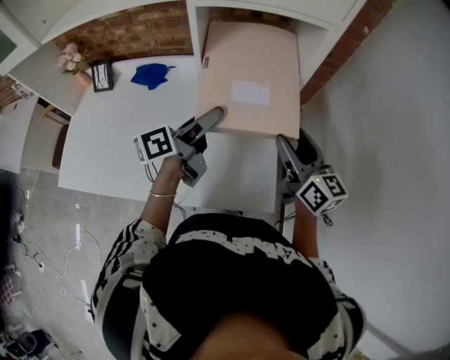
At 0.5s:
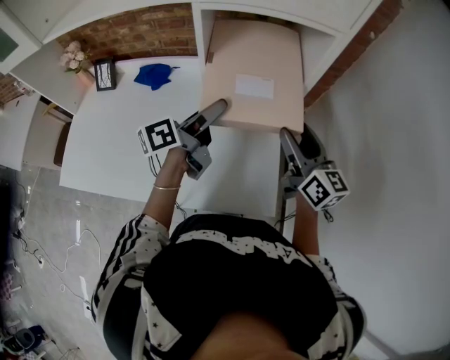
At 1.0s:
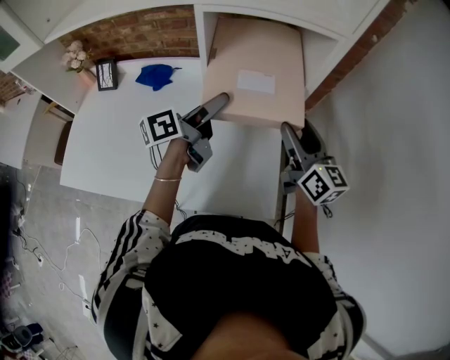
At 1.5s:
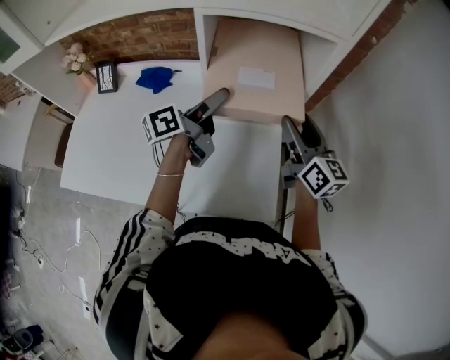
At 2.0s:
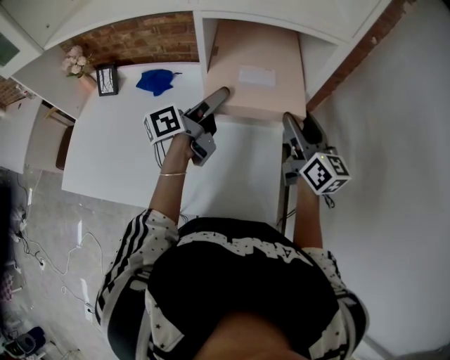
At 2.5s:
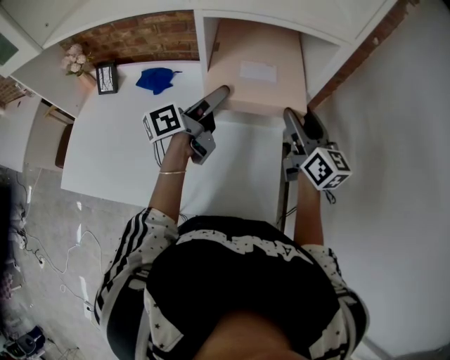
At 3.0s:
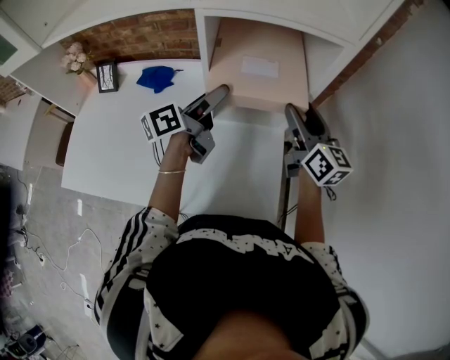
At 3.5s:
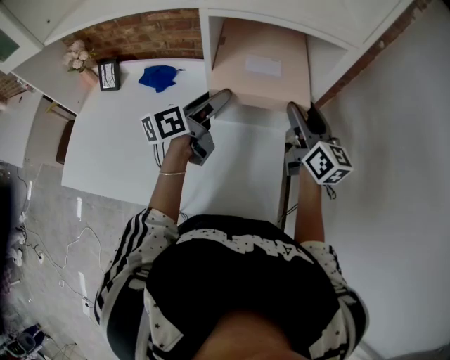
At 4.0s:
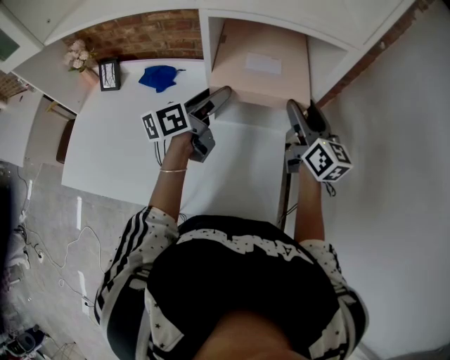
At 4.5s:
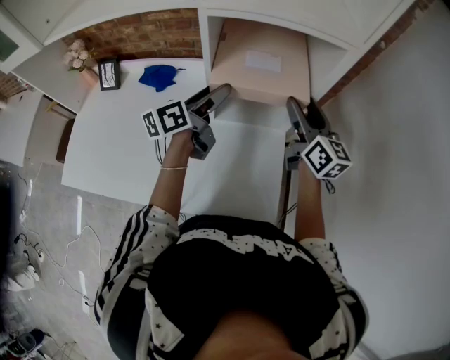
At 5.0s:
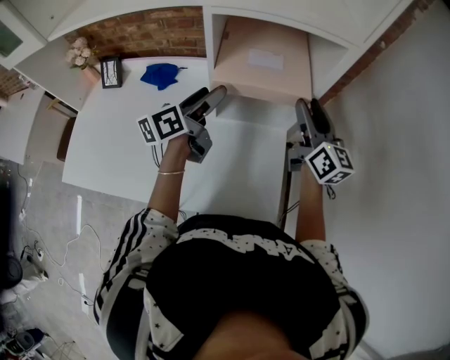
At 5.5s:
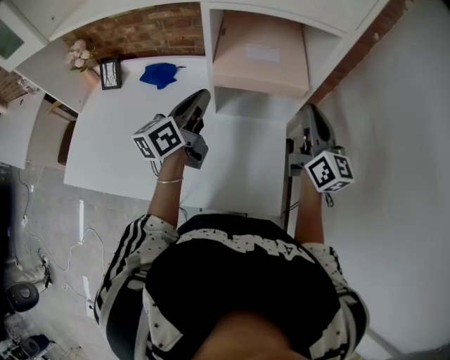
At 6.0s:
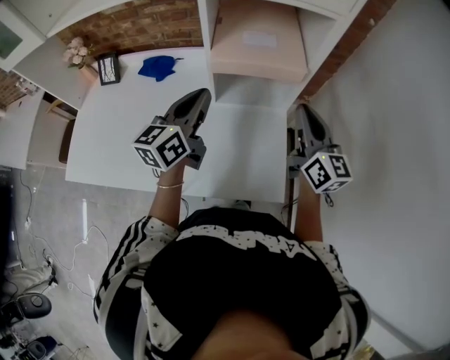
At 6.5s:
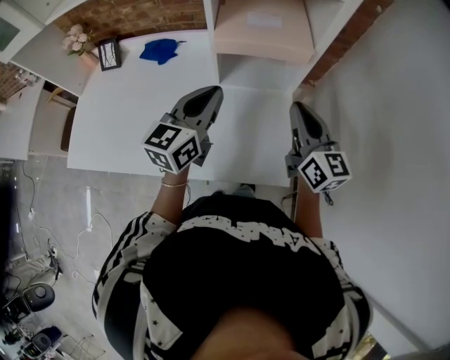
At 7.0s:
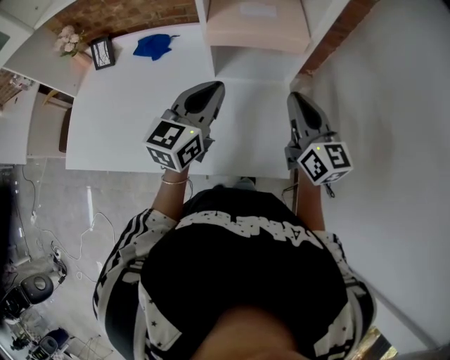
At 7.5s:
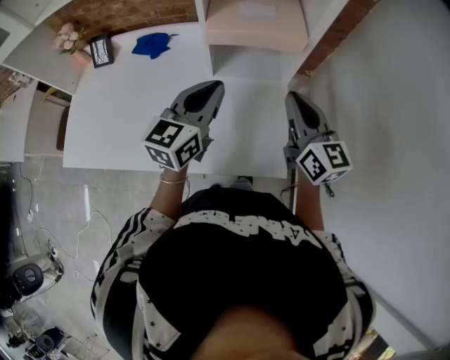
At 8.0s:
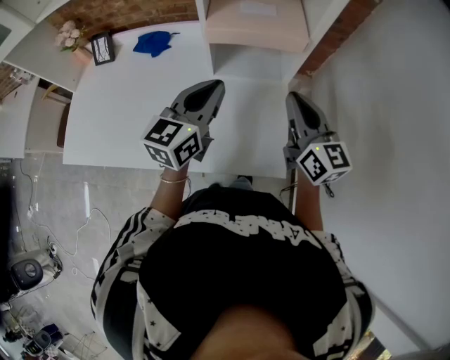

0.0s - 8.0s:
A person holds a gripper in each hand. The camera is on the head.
0.0s - 2.0s: Both grippers move forward, roughly 10 cm.
2.0s - 4.0s: The grippers move only a little.
4.0s - 6.0s: Both grippers move backward, roughly 10 cm. The right gripper closes its fingers; the left gripper changes its angle by roughly 30 degrees, and closes.
6.0s - 8.0s: The left gripper shifts approximately 5 cm to the right; the right gripper moves roughly 5 cm.

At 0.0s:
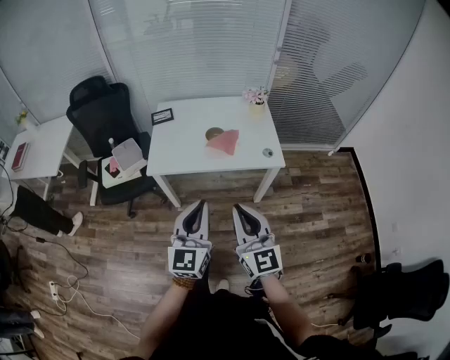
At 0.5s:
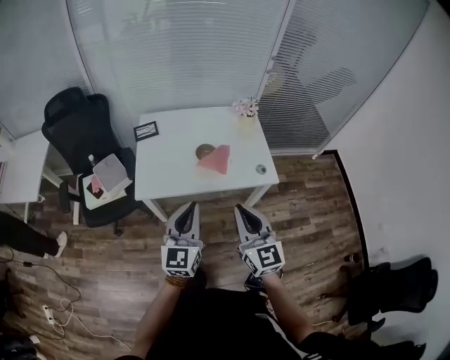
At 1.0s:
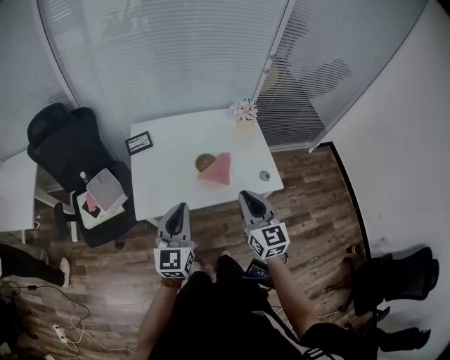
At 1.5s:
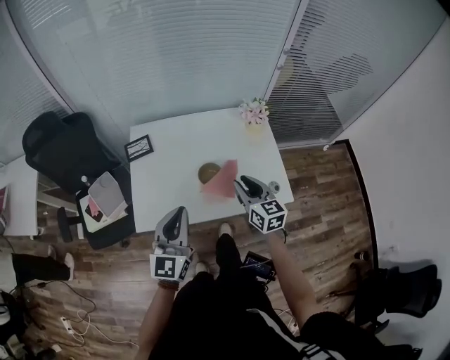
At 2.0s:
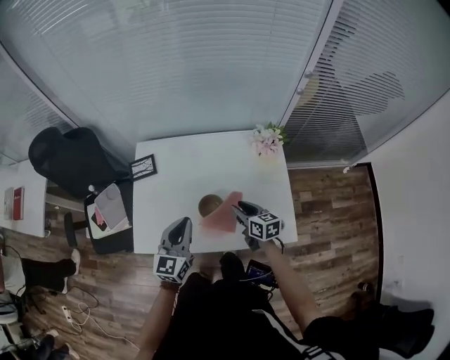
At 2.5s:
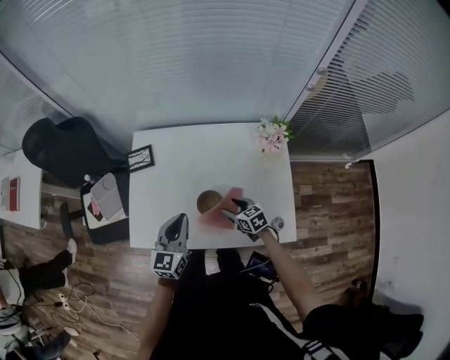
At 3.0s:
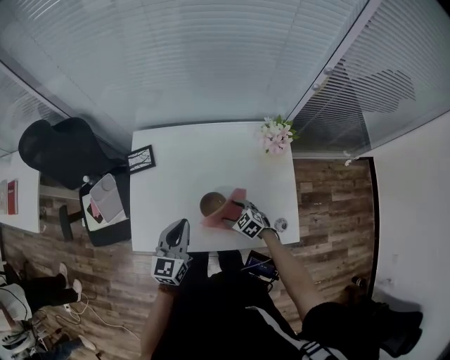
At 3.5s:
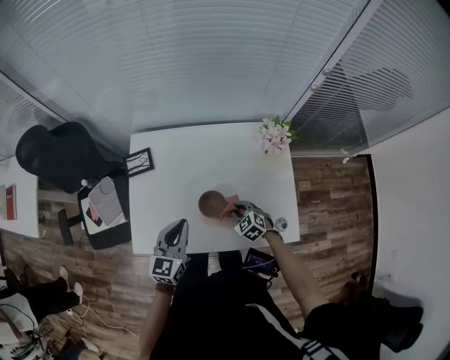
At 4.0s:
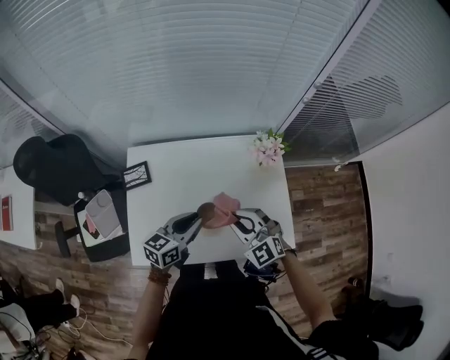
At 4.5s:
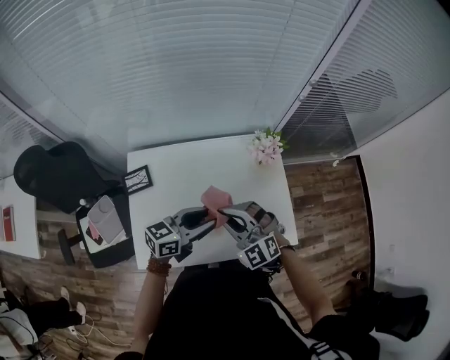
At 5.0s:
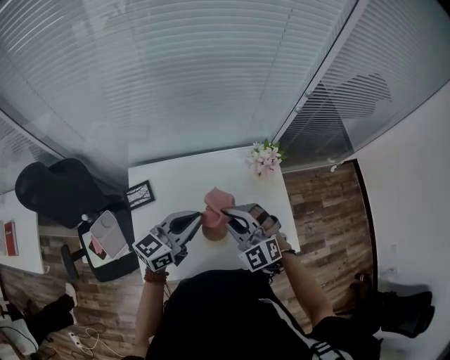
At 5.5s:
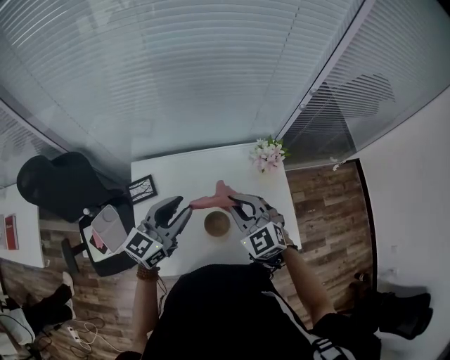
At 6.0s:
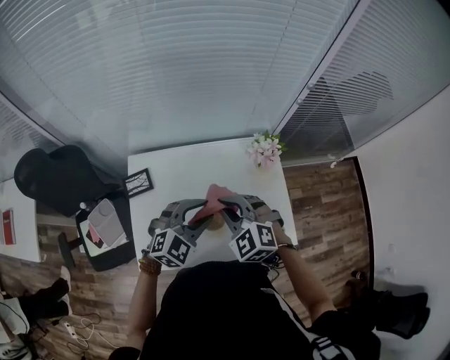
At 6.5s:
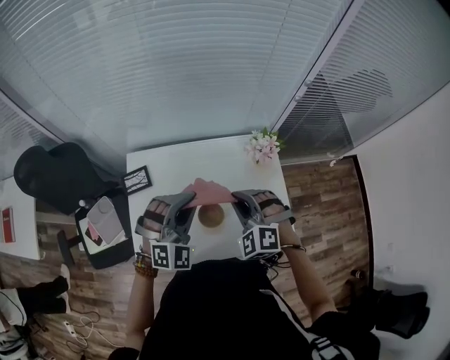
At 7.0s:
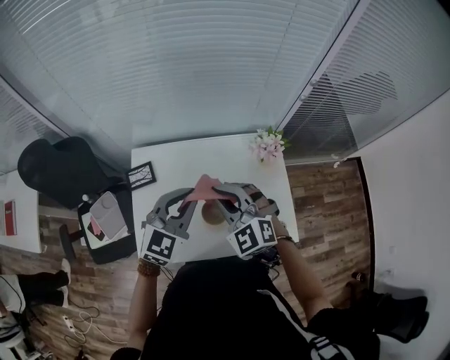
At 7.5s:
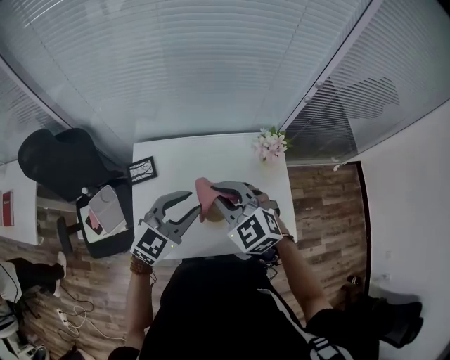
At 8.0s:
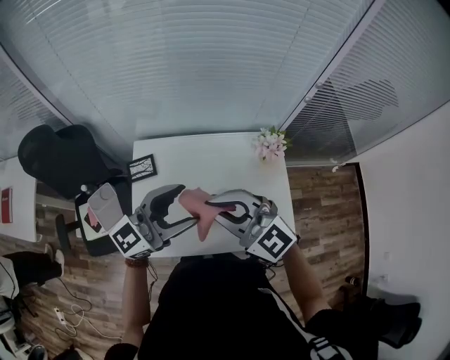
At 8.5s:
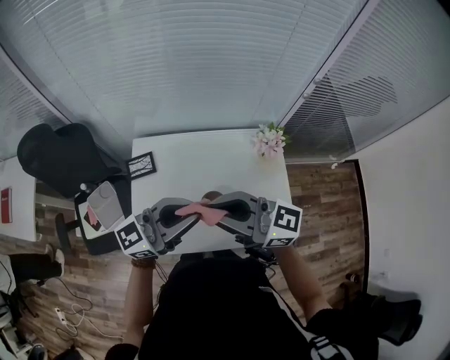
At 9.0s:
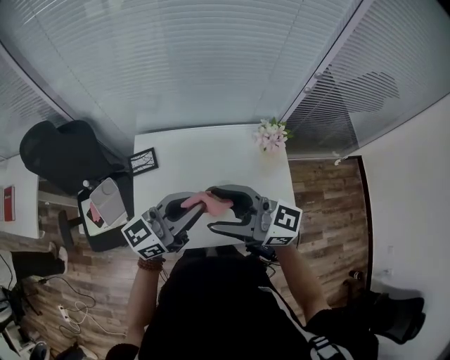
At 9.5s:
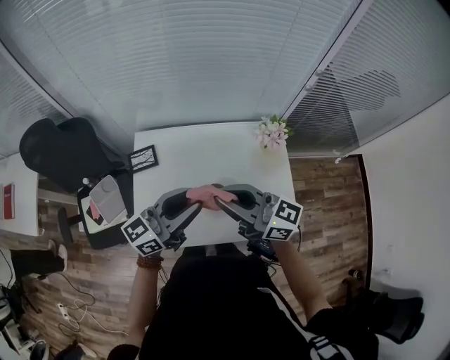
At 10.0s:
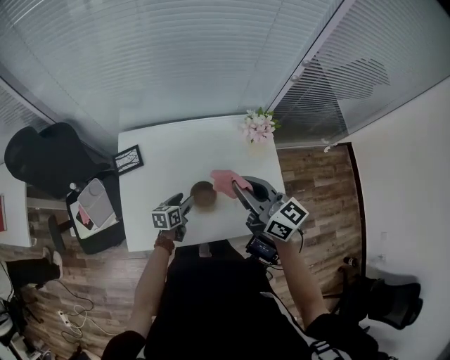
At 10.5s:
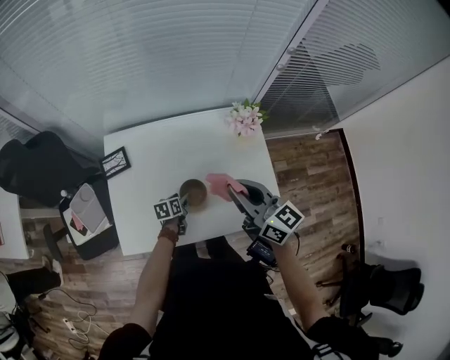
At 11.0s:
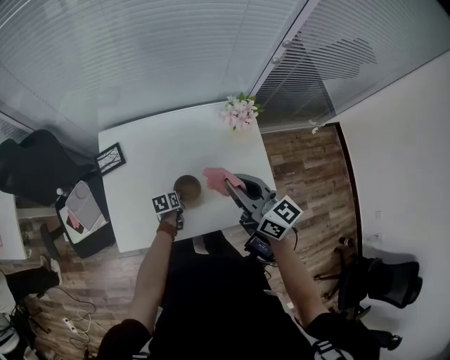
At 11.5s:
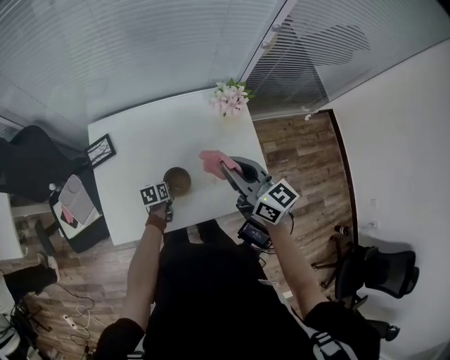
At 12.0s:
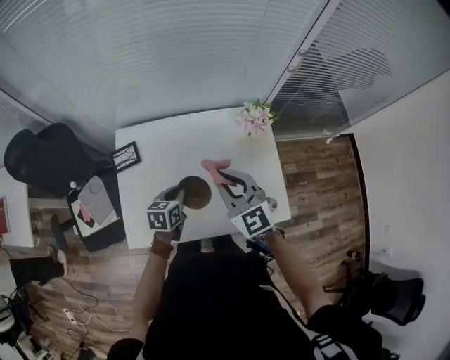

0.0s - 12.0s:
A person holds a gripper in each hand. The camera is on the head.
0.0s - 2.0s: The pair of grippers is taken forward, approximately 50 cm. The right gripper goes about 30 cm downward, tips its fingers downward by about 30 degrees, and opens up.
2.0s - 4.0s: The left gripper shifts about 5 cm forward, and changes its angle by some 40 degrees; the right gripper shifts roughly 15 cm upward and to the left, twists some 60 degrees counterclockwise, seen from behind, and closes its fingers.
4.0s - 6.0s: The left gripper heads upward, covering about 10 cm, twists approximately 60 degrees clockwise, seen from behind, and opens, while the right gripper travels upward and to the left by about 10 cm.
6.0s - 8.0s: The left gripper shifts roughly 15 cm upward and to the left, tips its fingers upward by about 40 degrees, and closes and opens again. Meanwhile the right gripper heads upward and backward, covering about 15 cm, and swivels about 40 degrees.
8.0s - 10.0s: The right gripper shifts by some 15 cm, twists some 40 degrees clockwise, seen from behind, and opens, then closes once more; the left gripper moves downward, some 40 cm, points its fingers approximately 50 degrees further downward, and closes, then opens again.
10.0s - 12.0s: The right gripper rotates roughly 40 degrees, while the left gripper travels upward by roughly 10 cm, and closes up.

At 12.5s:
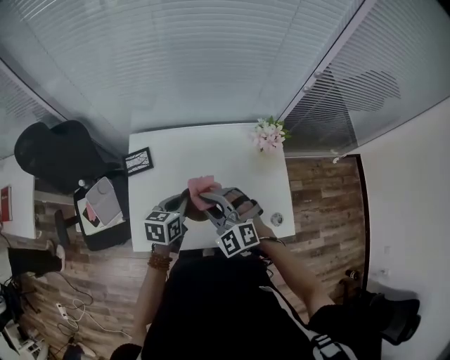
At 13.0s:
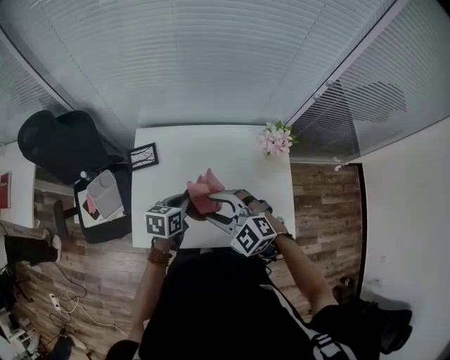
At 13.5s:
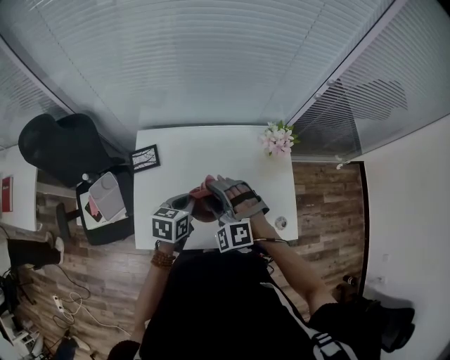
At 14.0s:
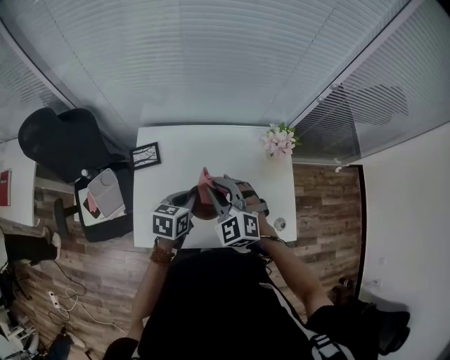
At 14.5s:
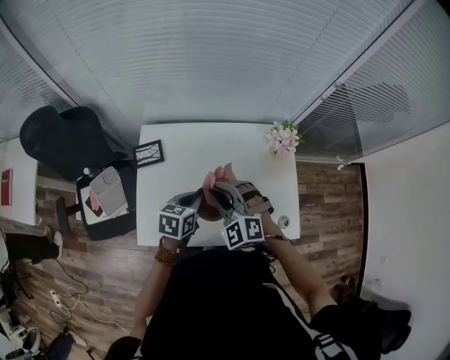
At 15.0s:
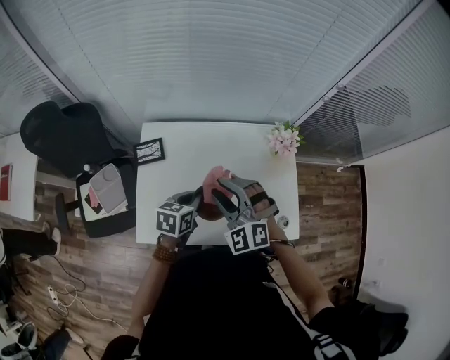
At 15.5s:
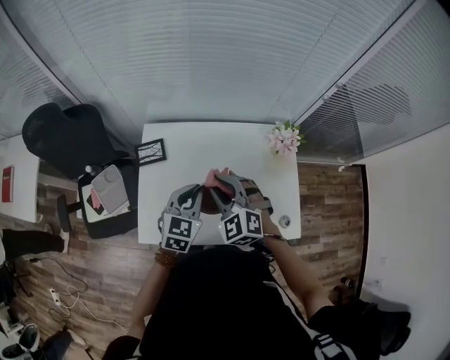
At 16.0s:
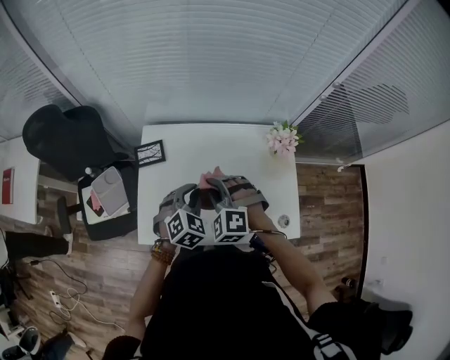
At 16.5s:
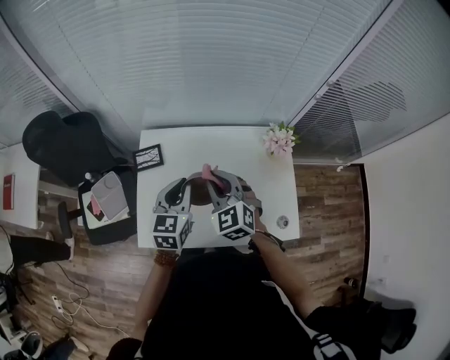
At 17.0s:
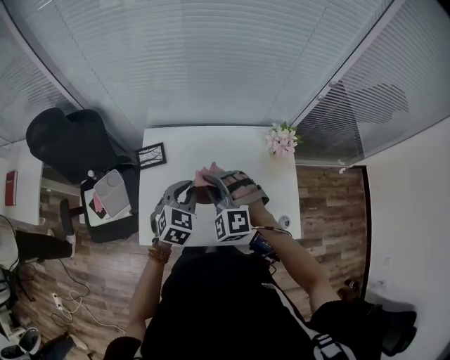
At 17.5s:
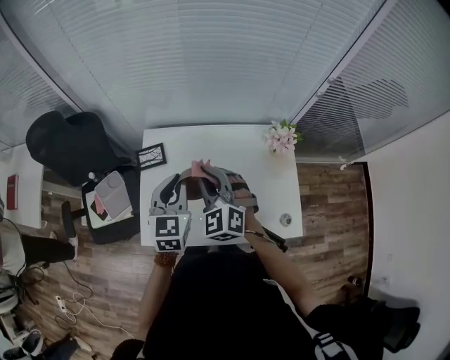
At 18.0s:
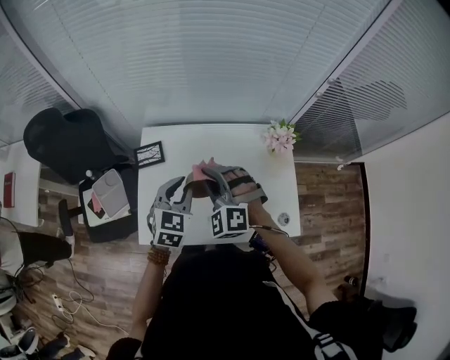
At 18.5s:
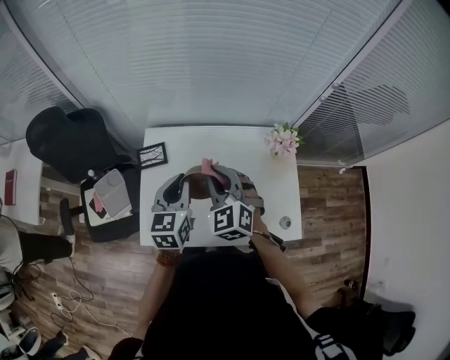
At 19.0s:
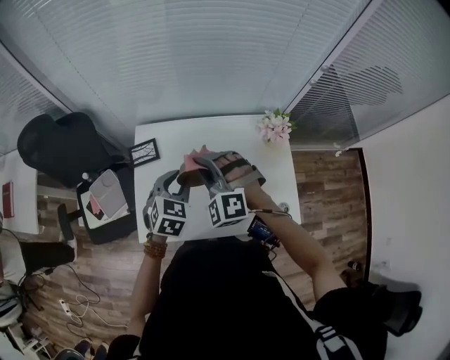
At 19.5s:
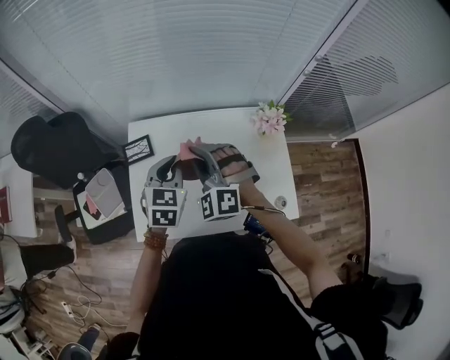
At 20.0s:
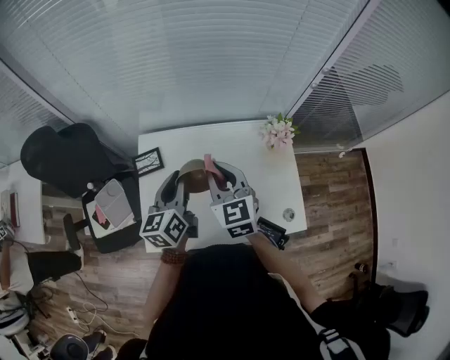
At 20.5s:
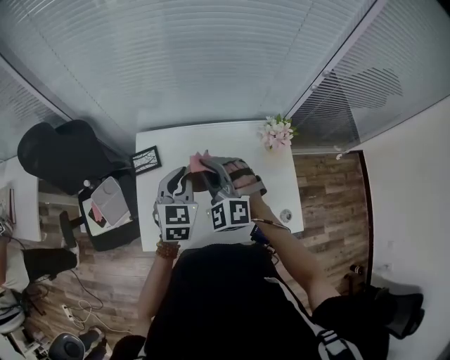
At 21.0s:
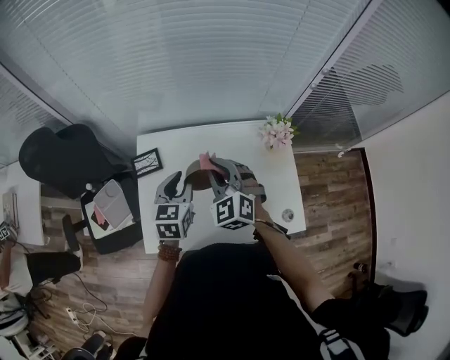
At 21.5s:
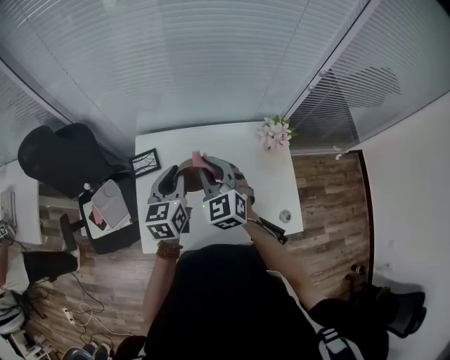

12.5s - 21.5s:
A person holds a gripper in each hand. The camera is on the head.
12.5s - 14.5s: The right gripper opens and closes again.
14.5s - 17.0s: The right gripper goes up and down, some 5 cm each way, reversing 2 times. Meanwhile the left gripper is displaced upward by roughly 5 cm, and swivels roughly 40 degrees.
17.0s - 19.5s: The right gripper ends up approximately 5 cm from where it was. The left gripper ends up roughly 5 cm from where it was.
19.5s - 21.5s: The left gripper rotates some 20 degrees. Meanwhile the right gripper rotates approximately 30 degrees.
